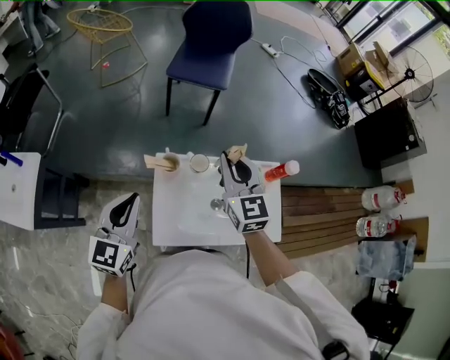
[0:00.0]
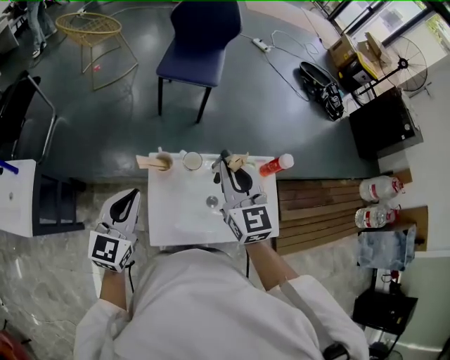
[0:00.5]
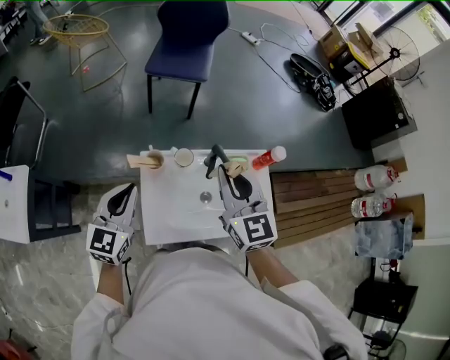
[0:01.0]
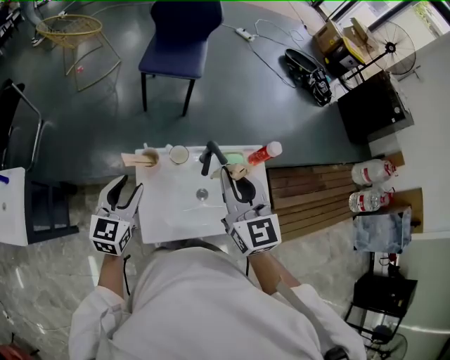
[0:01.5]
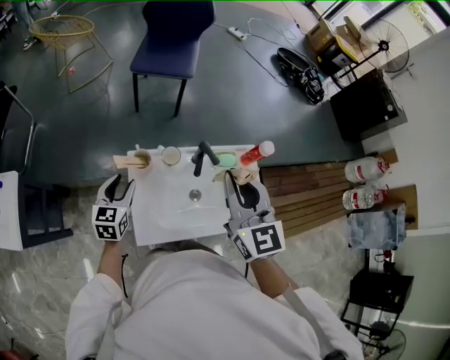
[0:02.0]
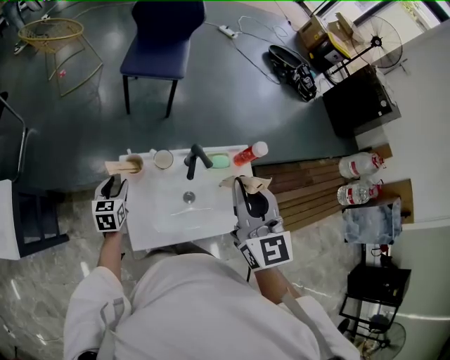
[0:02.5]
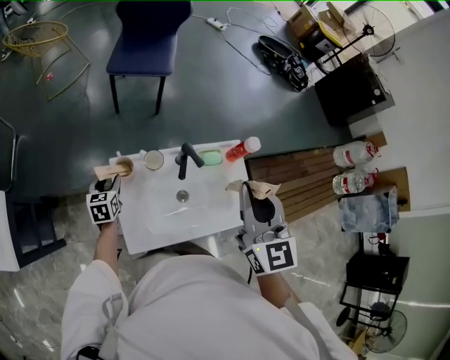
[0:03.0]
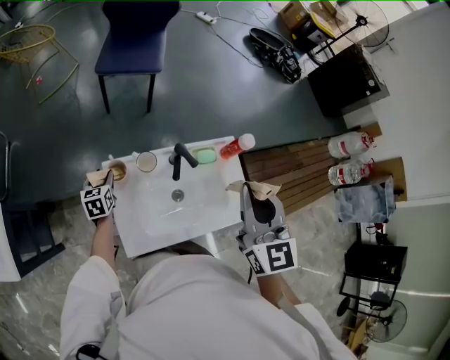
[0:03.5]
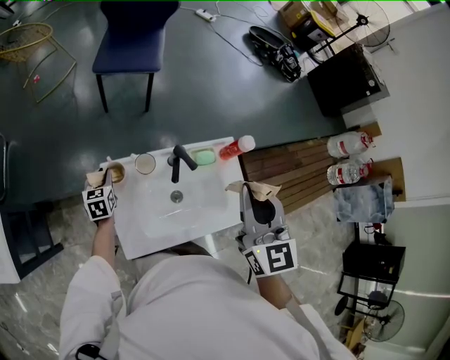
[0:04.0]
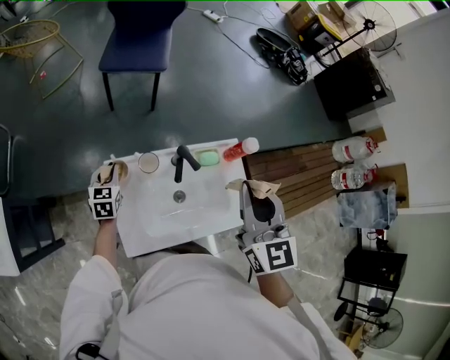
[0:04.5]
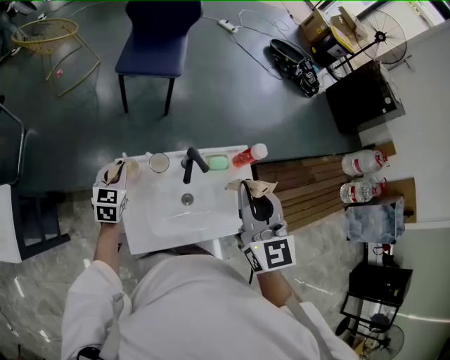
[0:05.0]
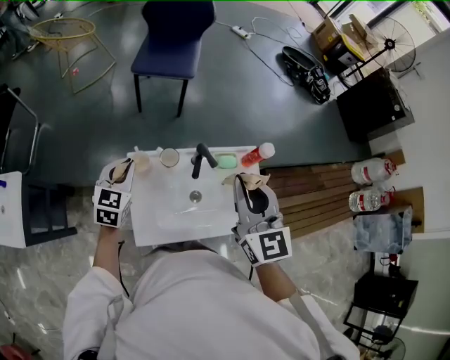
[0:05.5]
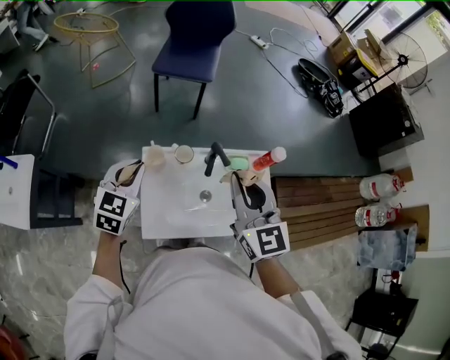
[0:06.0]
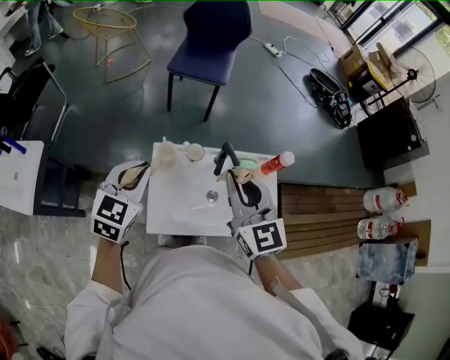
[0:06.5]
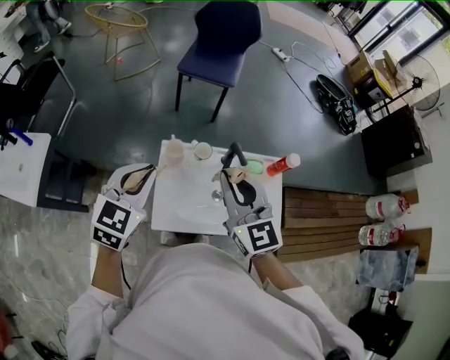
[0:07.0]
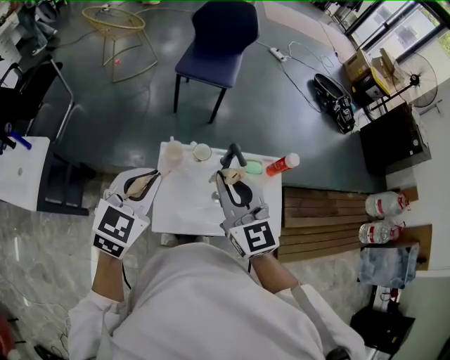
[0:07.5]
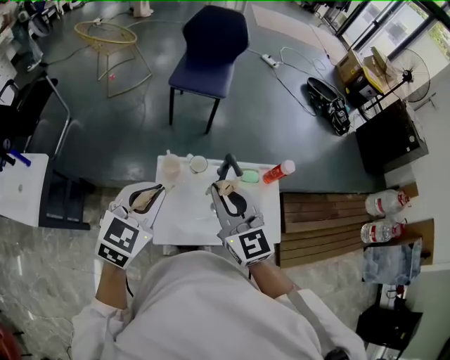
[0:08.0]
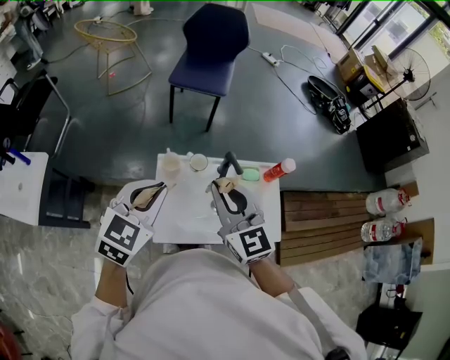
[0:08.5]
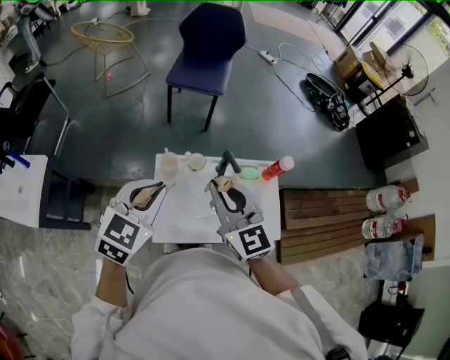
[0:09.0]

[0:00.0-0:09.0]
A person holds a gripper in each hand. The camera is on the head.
0:00.0 to 0:02.0: The left gripper heads downward and forward, covering some 15 cm, and opens; the right gripper is displaced backward, to the right and upward by approximately 10 cm.
0:02.0 to 0:04.5: The right gripper moves to the right, approximately 10 cm. Meanwhile the left gripper moves forward and downward, some 15 cm, and closes its fingers.
0:04.5 to 0:07.0: The right gripper heads to the left, covering some 15 cm, and changes its angle by some 30 degrees; the left gripper travels upward and backward by some 35 cm.
0:07.0 to 0:09.0: The grippers stay close to where they were, moving slightly.

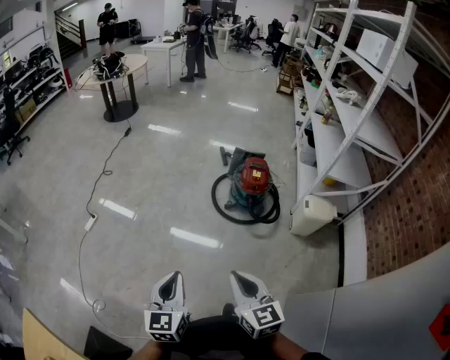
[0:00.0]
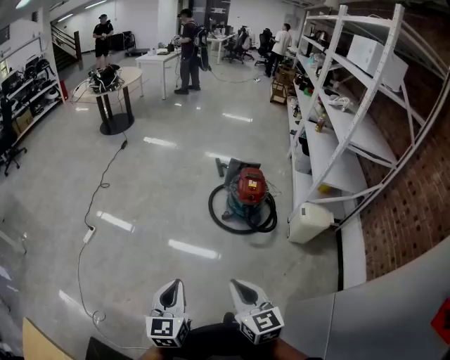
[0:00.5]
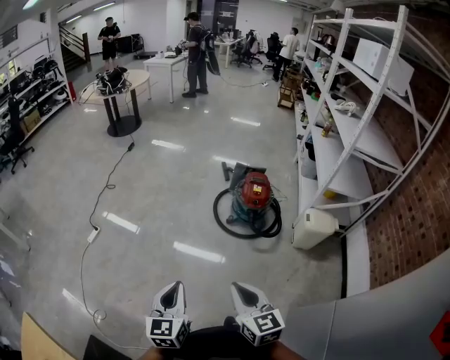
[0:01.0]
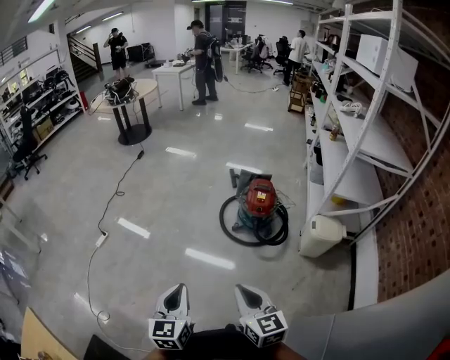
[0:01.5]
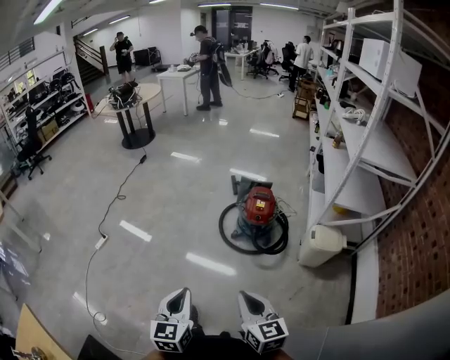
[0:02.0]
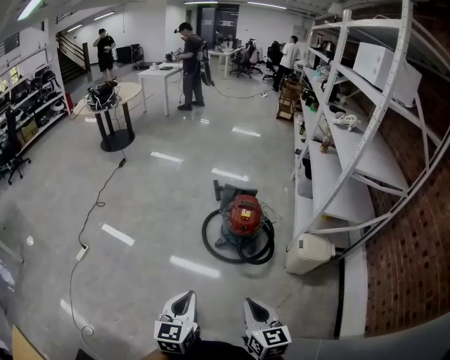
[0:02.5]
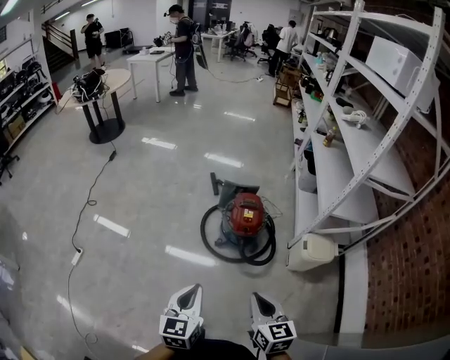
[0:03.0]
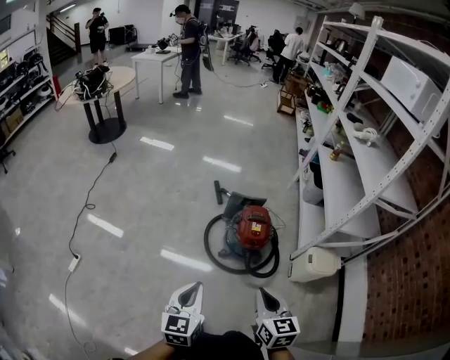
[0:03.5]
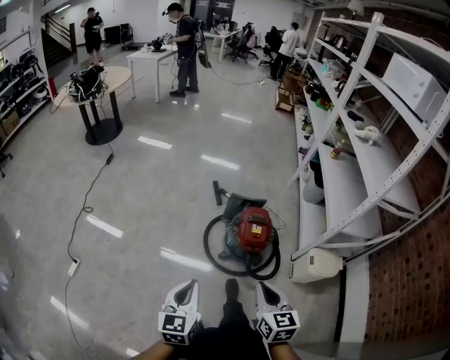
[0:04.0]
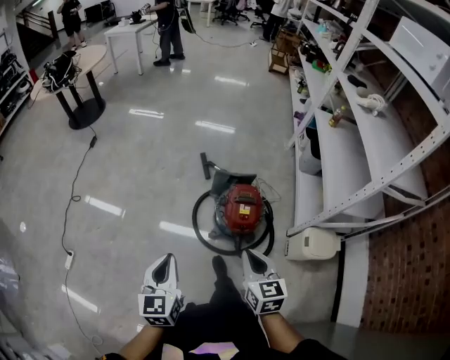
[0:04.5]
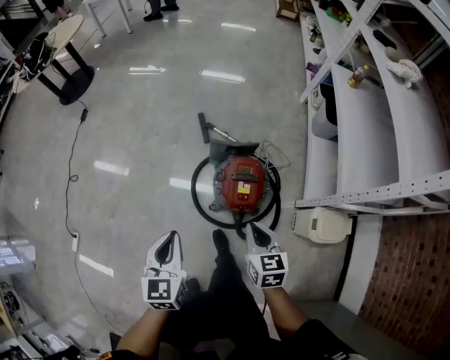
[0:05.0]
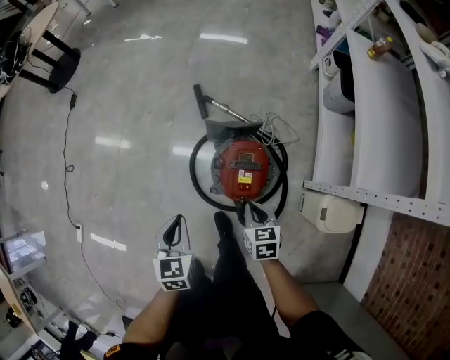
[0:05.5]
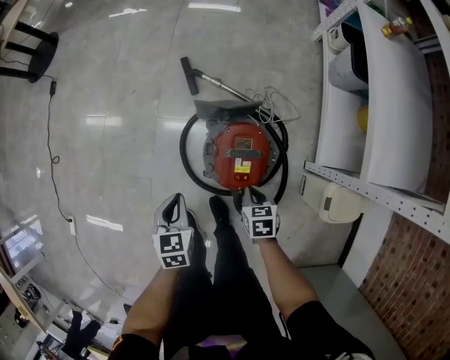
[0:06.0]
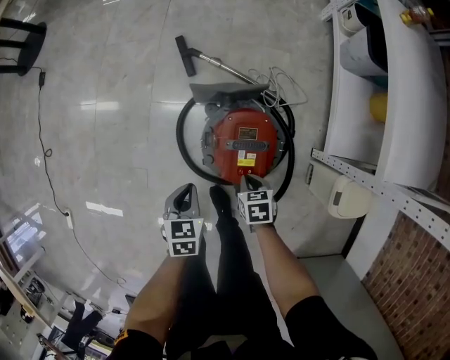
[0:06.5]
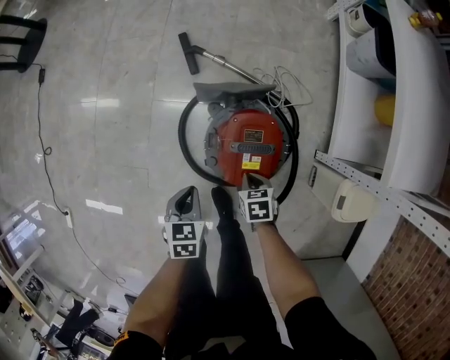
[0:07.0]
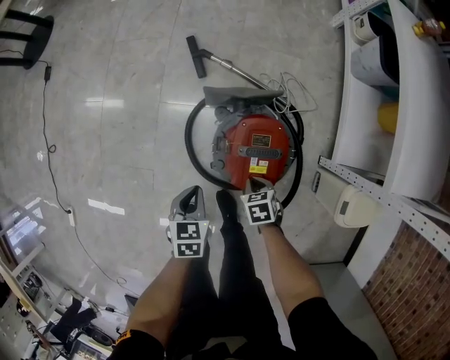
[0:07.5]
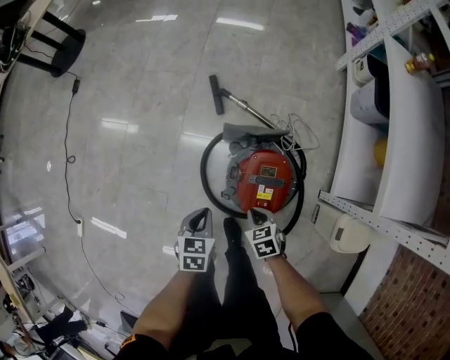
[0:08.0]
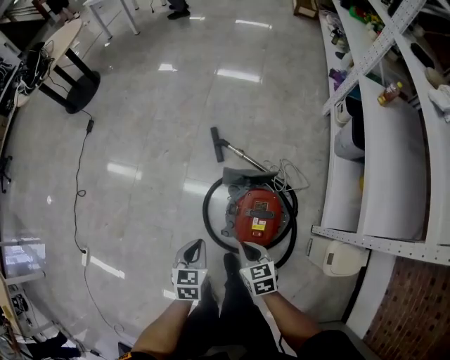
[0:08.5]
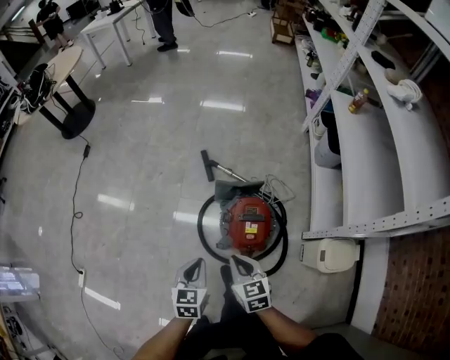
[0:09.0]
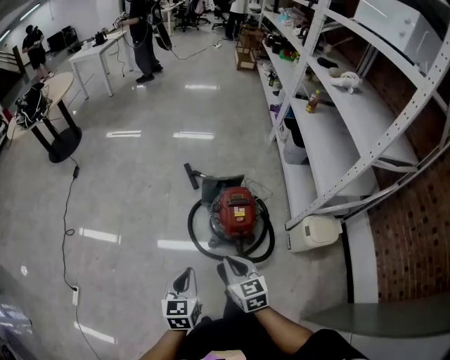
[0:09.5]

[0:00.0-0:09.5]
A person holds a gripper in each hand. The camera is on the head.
0:00.0 to 0:02.0: The two grippers go about 15 cm to the right.
0:02.0 to 0:04.0: The grippers both shift forward by roughly 35 cm. The right gripper swivels some 20 degrees.
0:04.0 to 0:05.5: The two grippers go roughly 40 cm forward, downward and to the right. The left gripper rotates approximately 30 degrees. Meanwhile the right gripper rotates about 30 degrees.
0:05.5 to 0:07.5: Both grippers move downward, approximately 20 cm. The right gripper turns by some 20 degrees.
0:07.5 to 0:09.5: Both grippers travel together upward, backward and to the left, roughly 40 cm. The right gripper points its fingers approximately 40 degrees further upward. Meanwhile the left gripper swivels about 30 degrees.

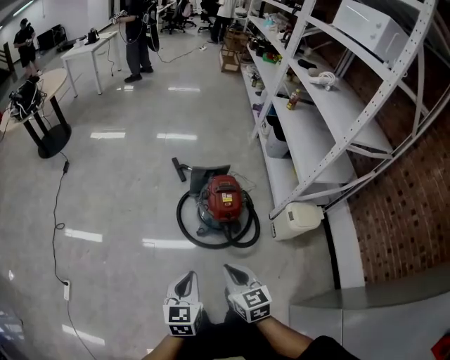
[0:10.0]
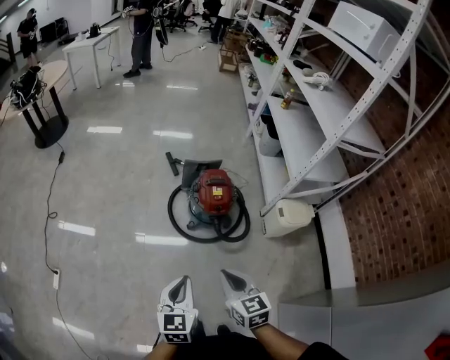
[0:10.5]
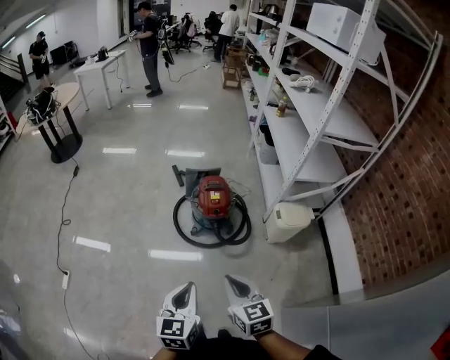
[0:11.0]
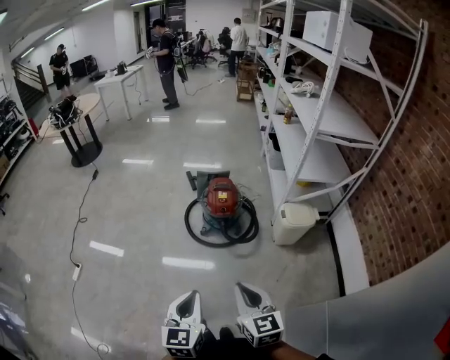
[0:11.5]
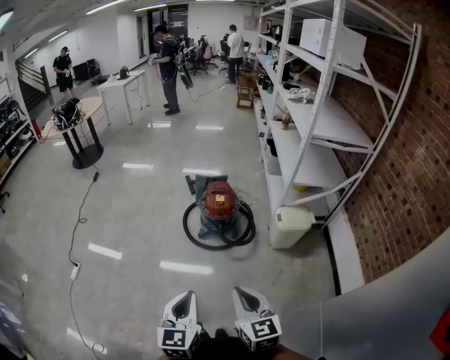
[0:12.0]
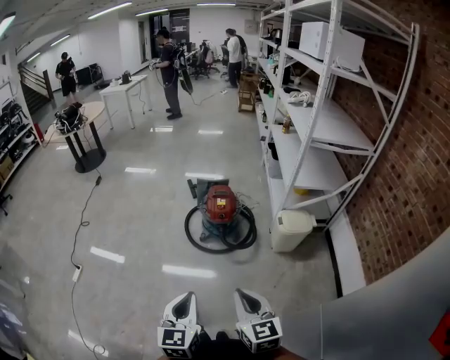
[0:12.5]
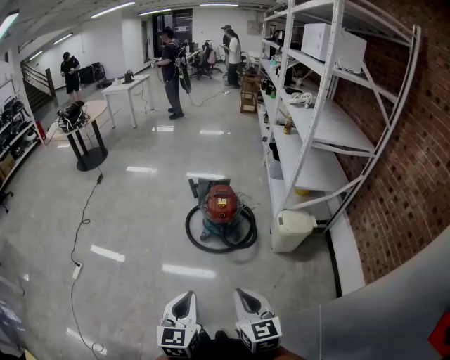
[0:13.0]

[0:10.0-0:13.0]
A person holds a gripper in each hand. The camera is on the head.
0:10.0 to 0:11.5: Both grippers move backward and to the right, about 30 cm.
0:11.5 to 0:13.0: The grippers stay close to where they were, moving slightly.

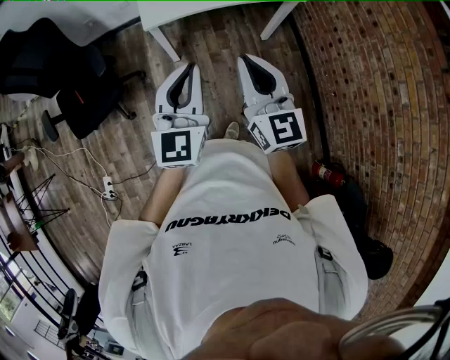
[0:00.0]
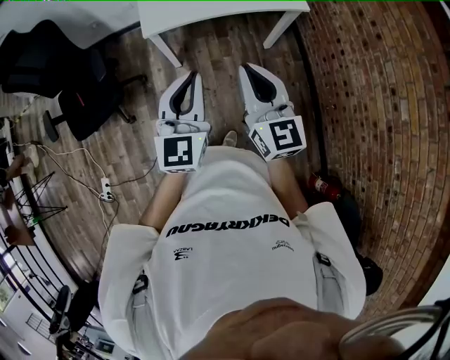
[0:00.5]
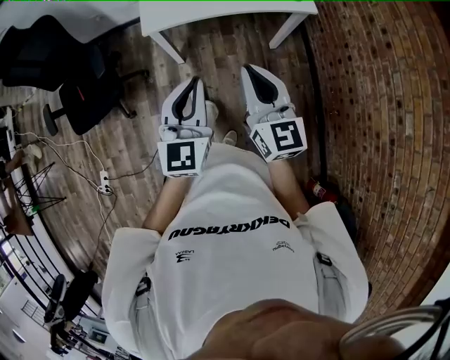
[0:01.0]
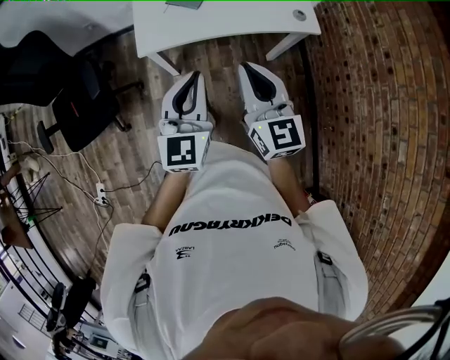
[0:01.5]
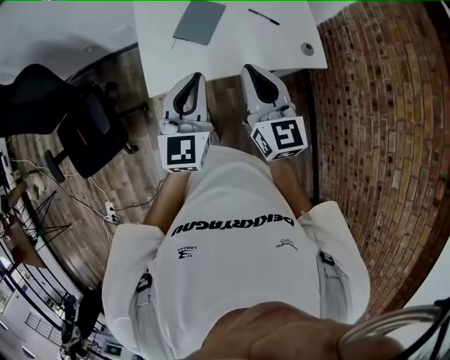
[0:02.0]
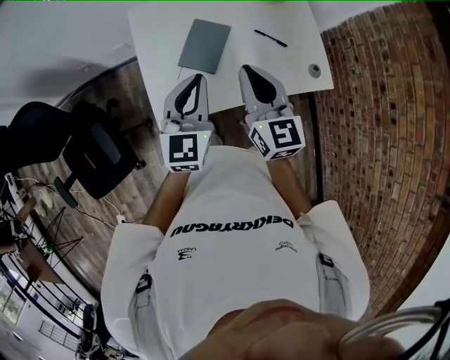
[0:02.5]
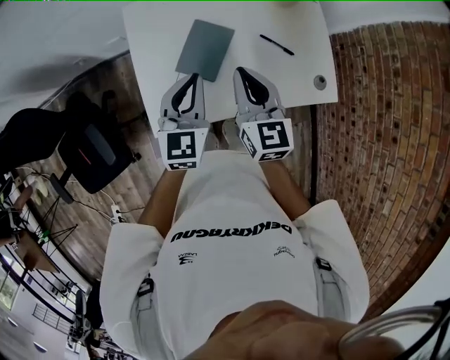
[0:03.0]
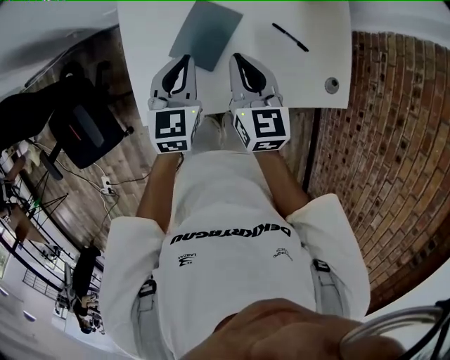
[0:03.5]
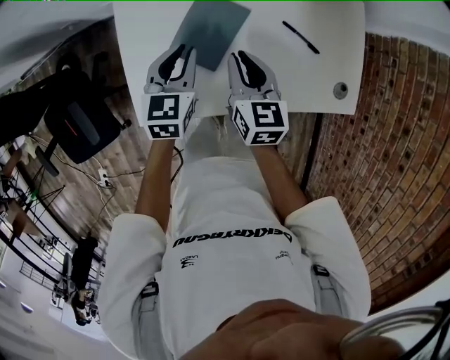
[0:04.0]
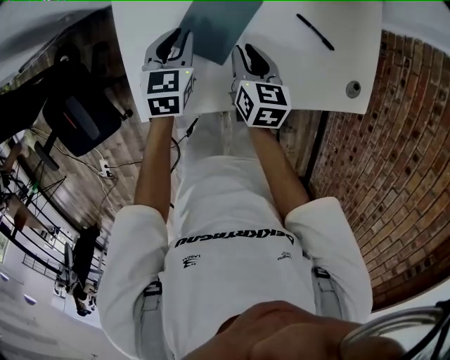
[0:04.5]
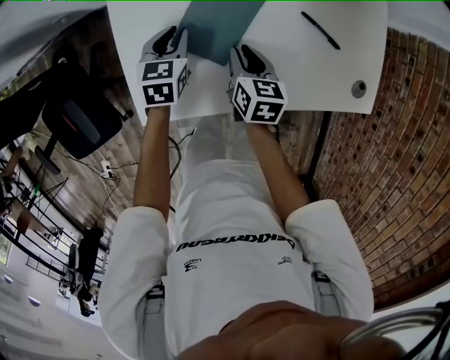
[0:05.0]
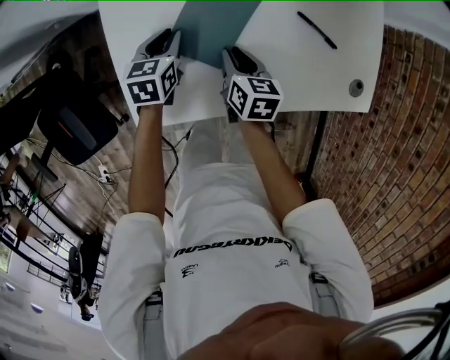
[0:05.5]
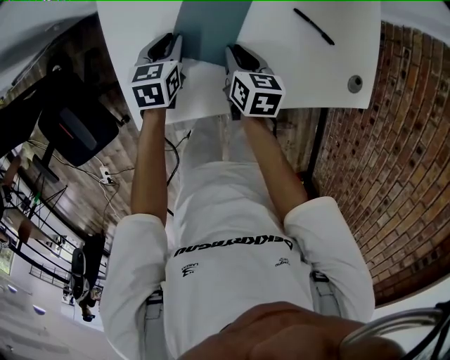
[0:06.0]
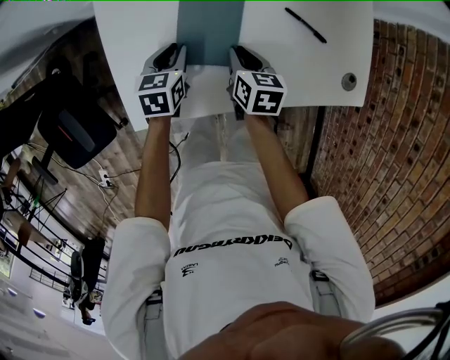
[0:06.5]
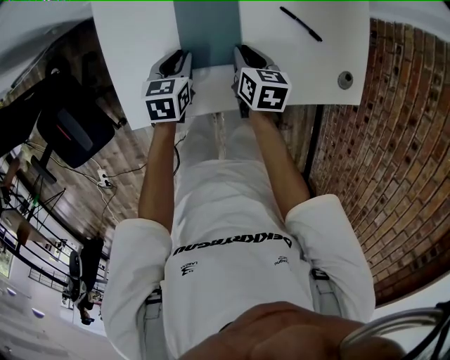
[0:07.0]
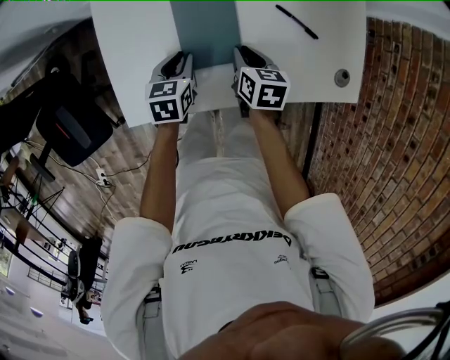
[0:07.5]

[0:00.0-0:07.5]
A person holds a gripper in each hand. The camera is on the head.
0:00.0 to 0:02.0: The pair of grippers is taken forward, approximately 40 cm.
0:02.0 to 0:04.0: The grippers both shift forward and downward by approximately 40 cm. The left gripper turns by roughly 30 degrees. The right gripper turns by some 30 degrees.
0:04.0 to 0:05.5: The two grippers go about 15 cm downward. The right gripper swivels approximately 20 degrees.
0:05.5 to 0:07.5: The right gripper goes approximately 10 cm to the right. The left gripper goes roughly 10 cm backward and to the right.
